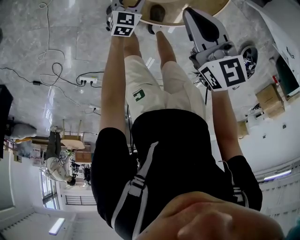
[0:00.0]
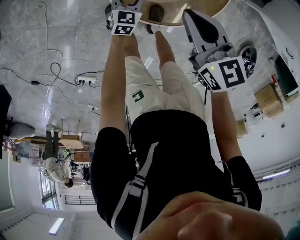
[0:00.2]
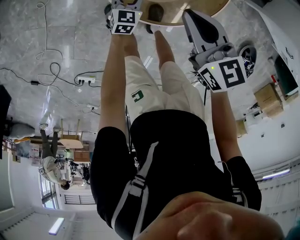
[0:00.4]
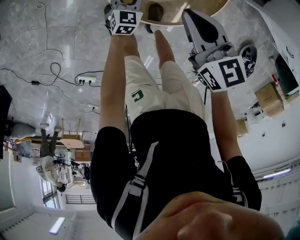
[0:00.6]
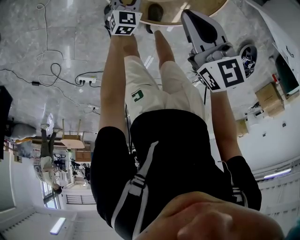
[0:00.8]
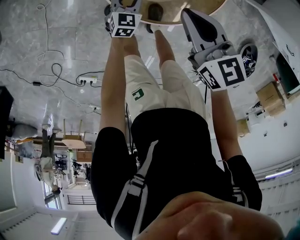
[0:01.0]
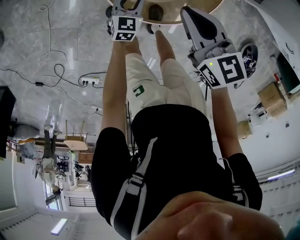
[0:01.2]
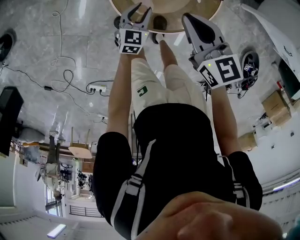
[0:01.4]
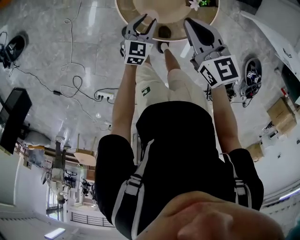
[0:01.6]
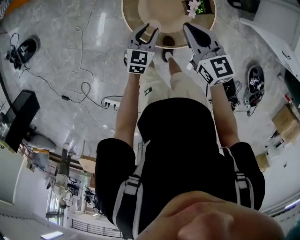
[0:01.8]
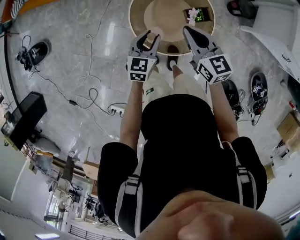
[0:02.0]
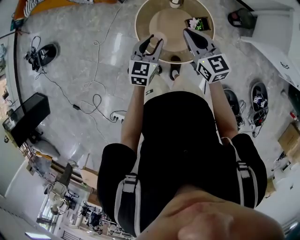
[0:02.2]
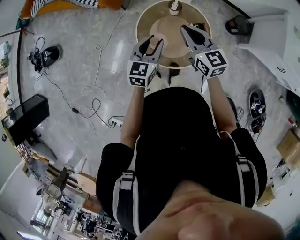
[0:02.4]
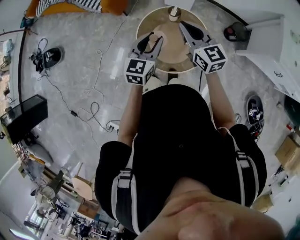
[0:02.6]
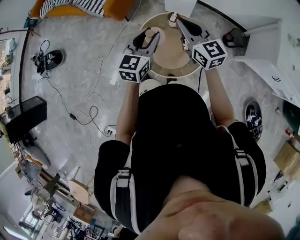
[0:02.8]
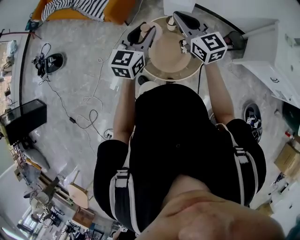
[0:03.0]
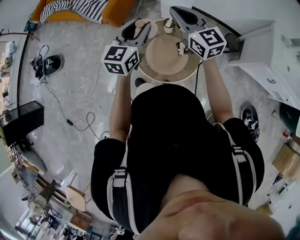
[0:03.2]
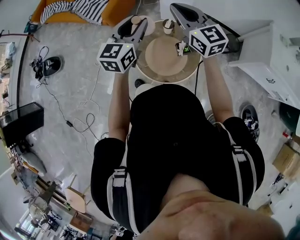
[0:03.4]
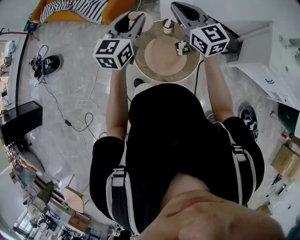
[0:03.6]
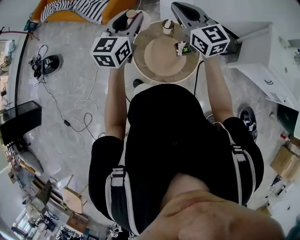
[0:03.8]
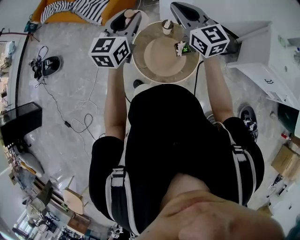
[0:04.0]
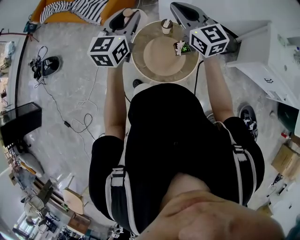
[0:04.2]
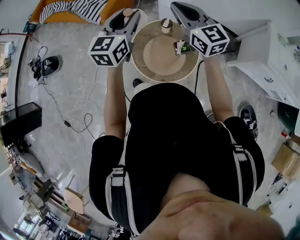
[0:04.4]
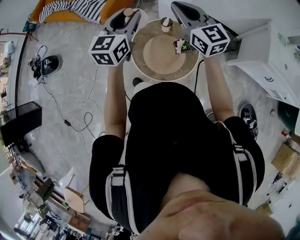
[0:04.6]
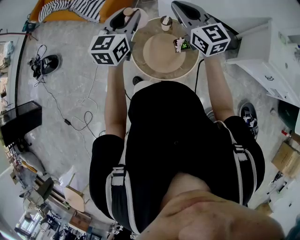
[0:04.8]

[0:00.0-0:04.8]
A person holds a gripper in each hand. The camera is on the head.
0:00.0 to 0:01.6: The right gripper is displaced upward by about 10 cm. Meanwhile the left gripper is displaced upward by roughly 20 cm.
0:01.6 to 0:03.2: Both grippers travel together upward, roughly 40 cm. The left gripper turns by roughly 20 degrees; the right gripper changes its angle by about 30 degrees.
0:03.2 to 0:04.8: The grippers make only small movements.

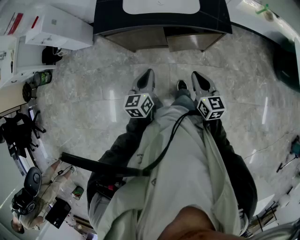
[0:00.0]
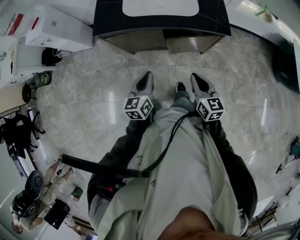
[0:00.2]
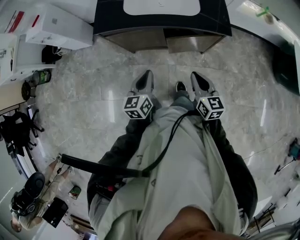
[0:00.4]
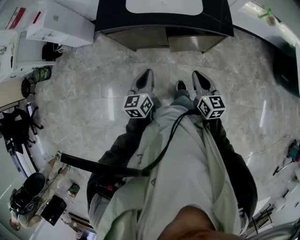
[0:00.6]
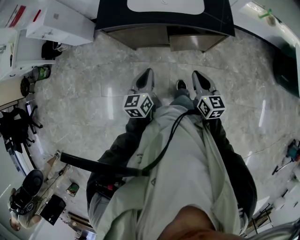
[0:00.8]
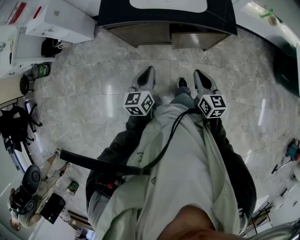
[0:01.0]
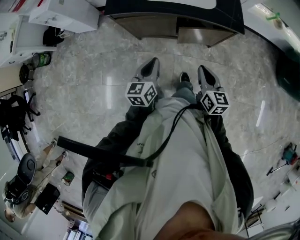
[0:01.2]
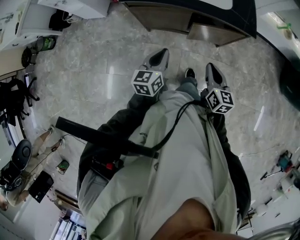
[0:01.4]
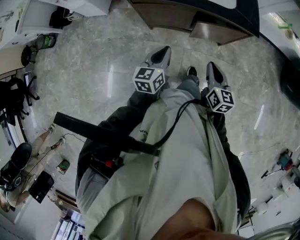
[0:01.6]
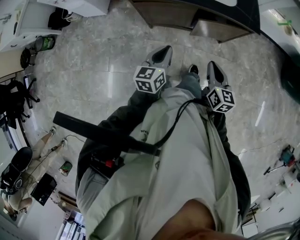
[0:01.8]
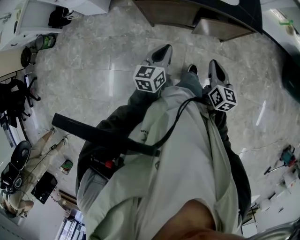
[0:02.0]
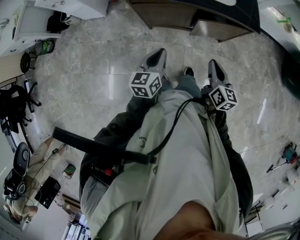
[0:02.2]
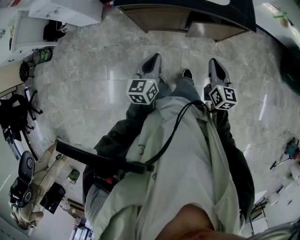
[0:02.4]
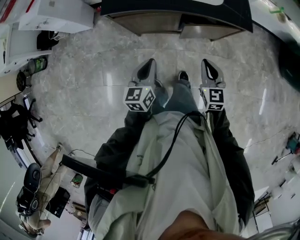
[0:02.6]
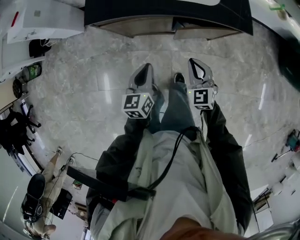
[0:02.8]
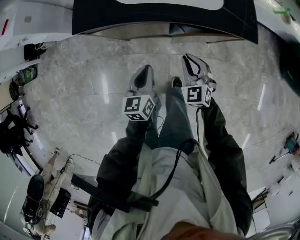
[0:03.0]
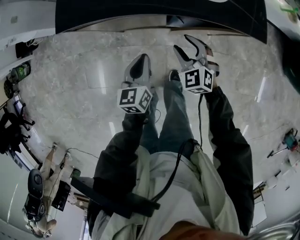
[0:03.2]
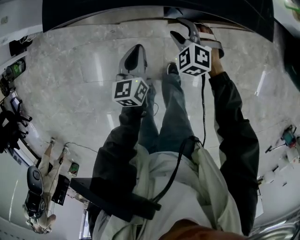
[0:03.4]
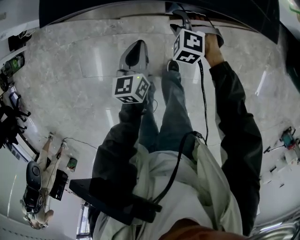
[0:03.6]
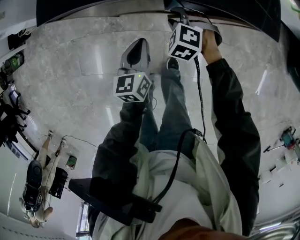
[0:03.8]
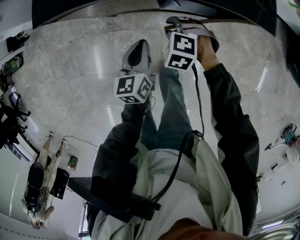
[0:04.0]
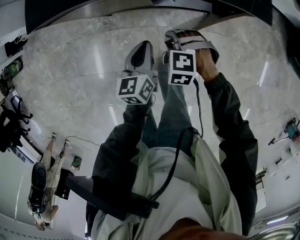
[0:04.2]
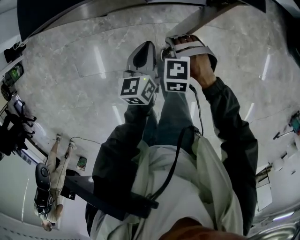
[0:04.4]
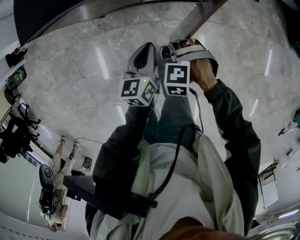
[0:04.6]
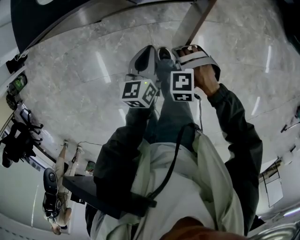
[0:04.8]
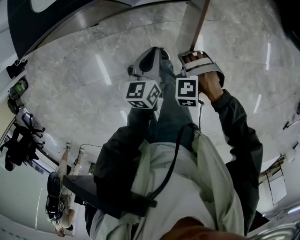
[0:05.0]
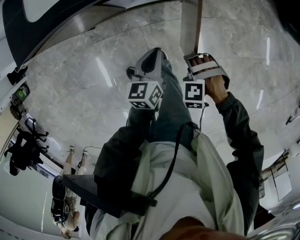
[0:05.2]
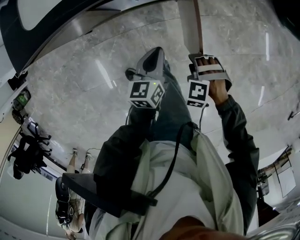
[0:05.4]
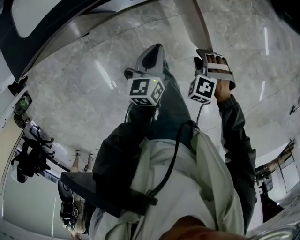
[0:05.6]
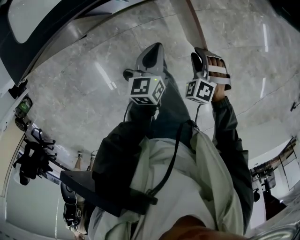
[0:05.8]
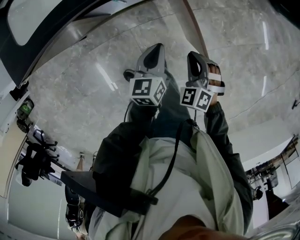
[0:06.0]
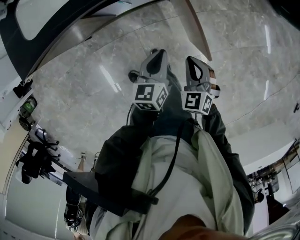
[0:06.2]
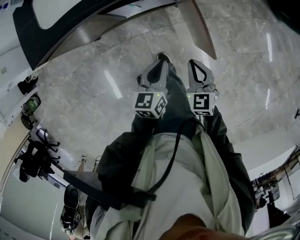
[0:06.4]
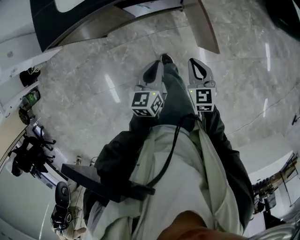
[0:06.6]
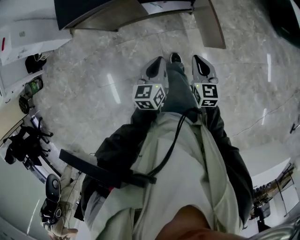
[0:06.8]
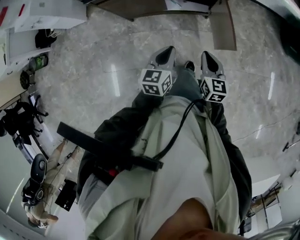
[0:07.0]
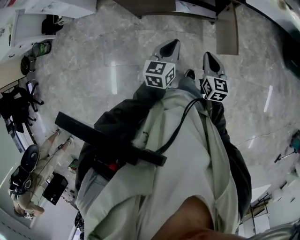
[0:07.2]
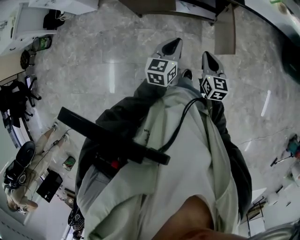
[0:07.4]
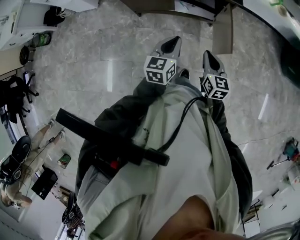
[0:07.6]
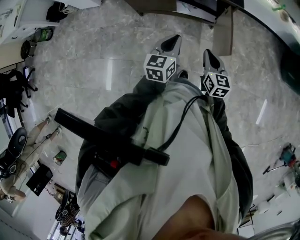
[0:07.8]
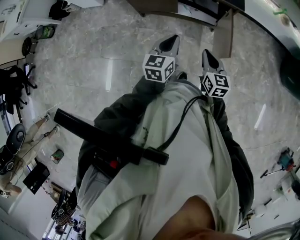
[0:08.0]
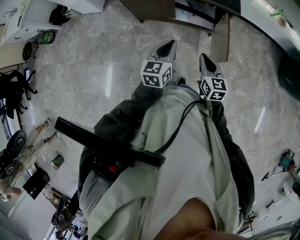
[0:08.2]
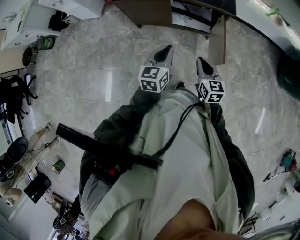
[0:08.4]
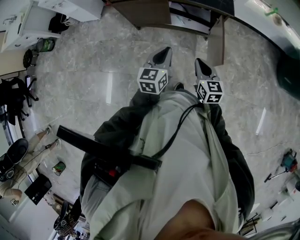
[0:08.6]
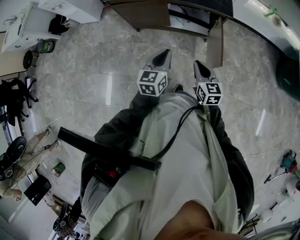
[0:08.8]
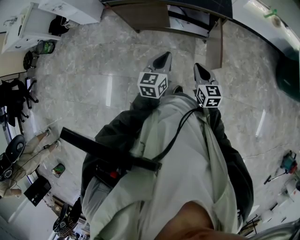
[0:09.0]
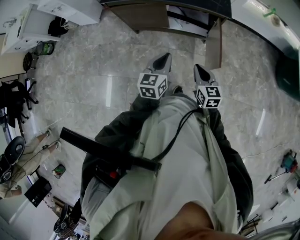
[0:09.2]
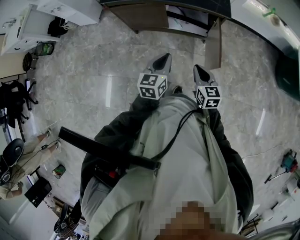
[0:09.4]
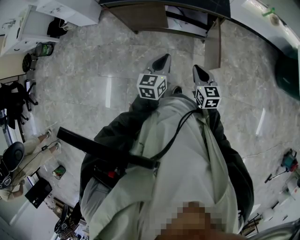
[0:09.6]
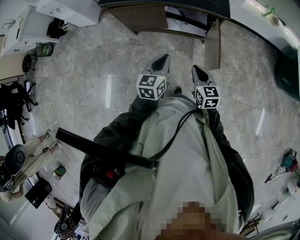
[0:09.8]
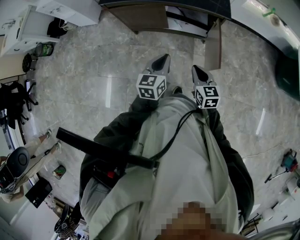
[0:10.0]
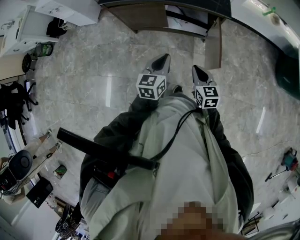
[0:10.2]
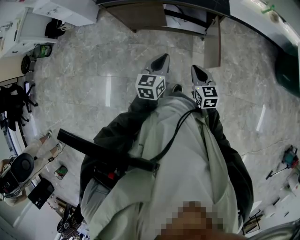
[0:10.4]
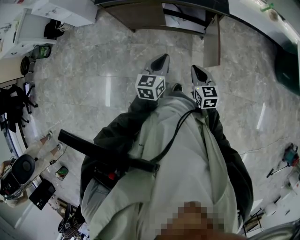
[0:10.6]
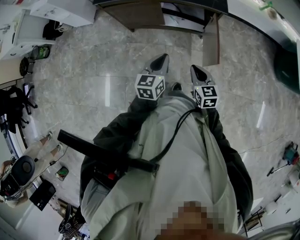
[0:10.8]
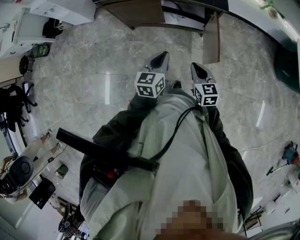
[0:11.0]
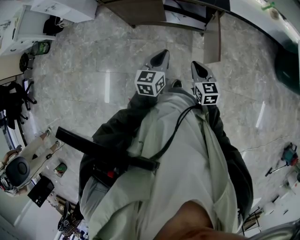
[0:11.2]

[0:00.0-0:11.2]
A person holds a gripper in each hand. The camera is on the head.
0:00.0 to 0:01.6: The grippers both shift to the left by approximately 5 cm.
0:01.6 to 0:03.2: The right gripper moves forward and downward, roughly 30 cm, rolls counterclockwise, seen from behind, by roughly 50 degrees, and opens; the left gripper travels downward and forward by about 20 cm.
0:03.2 to 0:04.8: The right gripper ends up roughly 25 cm from where it was, and tips its fingers downward by roughly 40 degrees, while the left gripper ends up approximately 20 cm from where it was.
0:04.8 to 0:06.4: The left gripper ends up about 10 cm from where it was, while the right gripper shifts by about 15 cm, rotates around the line of its fingers by some 70 degrees, clockwise from behind, and closes its fingers.
0:06.4 to 0:08.0: Both grippers travel together upward, to the left and backward, approximately 20 cm. The left gripper rotates some 20 degrees; the right gripper rotates approximately 30 degrees.
0:08.0 to 0:11.2: There are only small adjustments of the grippers.

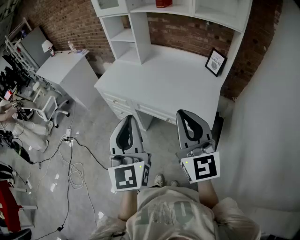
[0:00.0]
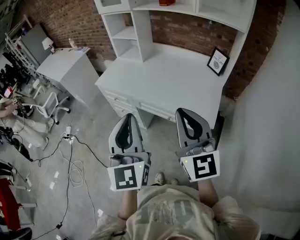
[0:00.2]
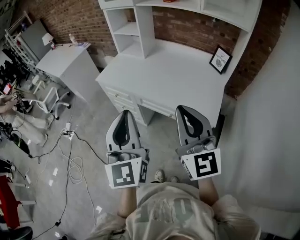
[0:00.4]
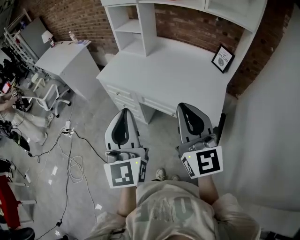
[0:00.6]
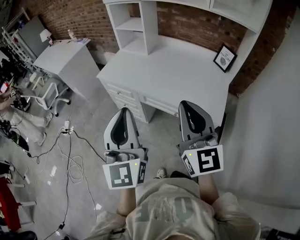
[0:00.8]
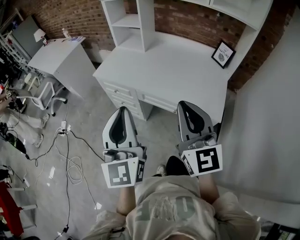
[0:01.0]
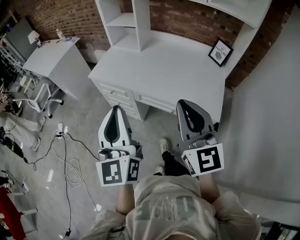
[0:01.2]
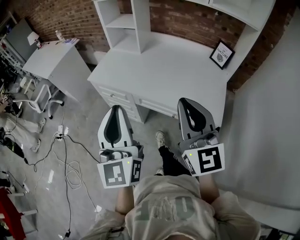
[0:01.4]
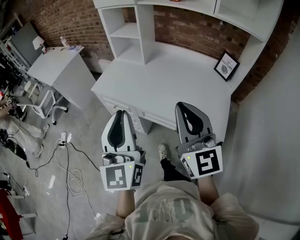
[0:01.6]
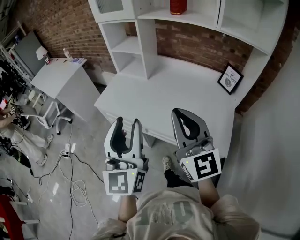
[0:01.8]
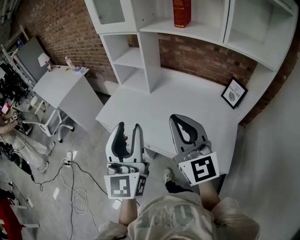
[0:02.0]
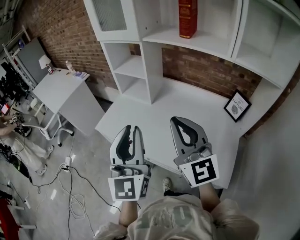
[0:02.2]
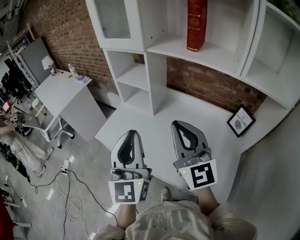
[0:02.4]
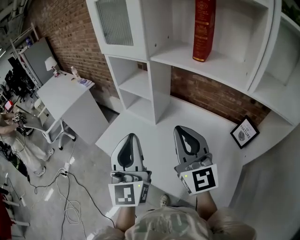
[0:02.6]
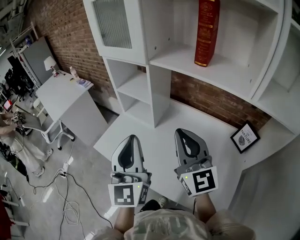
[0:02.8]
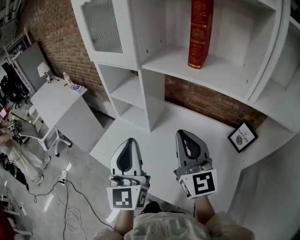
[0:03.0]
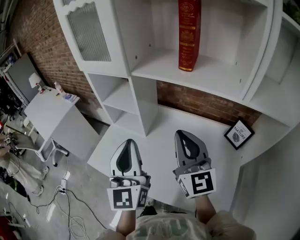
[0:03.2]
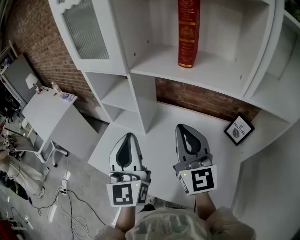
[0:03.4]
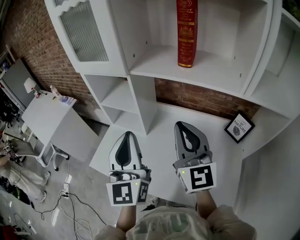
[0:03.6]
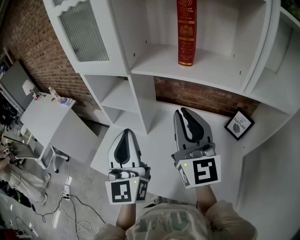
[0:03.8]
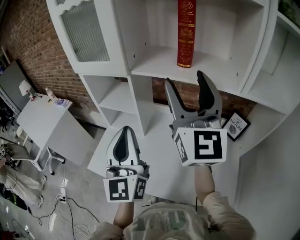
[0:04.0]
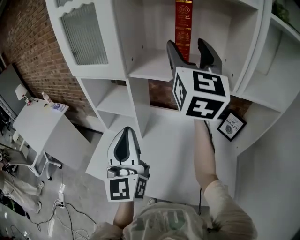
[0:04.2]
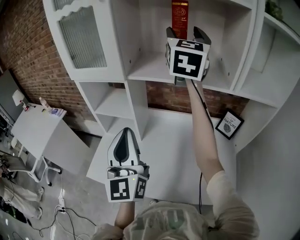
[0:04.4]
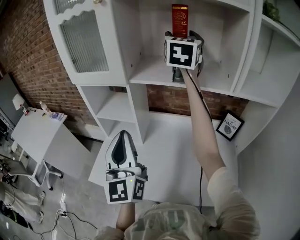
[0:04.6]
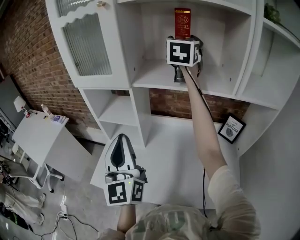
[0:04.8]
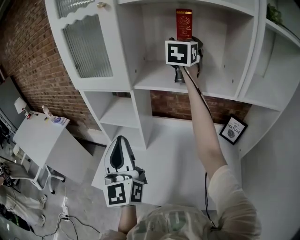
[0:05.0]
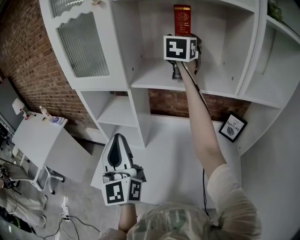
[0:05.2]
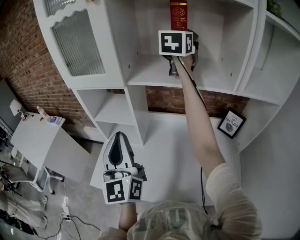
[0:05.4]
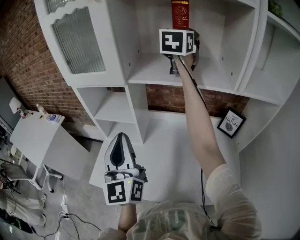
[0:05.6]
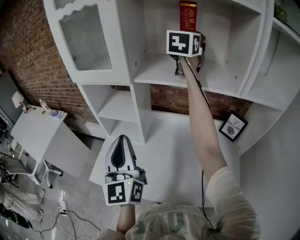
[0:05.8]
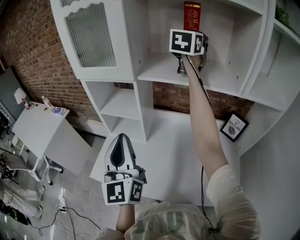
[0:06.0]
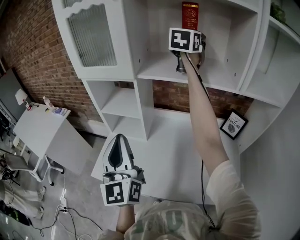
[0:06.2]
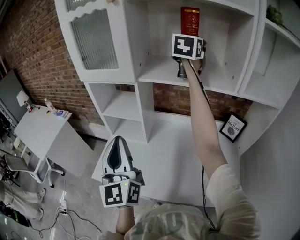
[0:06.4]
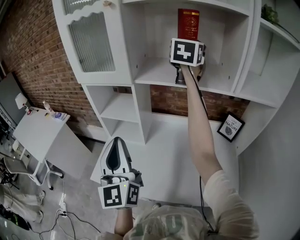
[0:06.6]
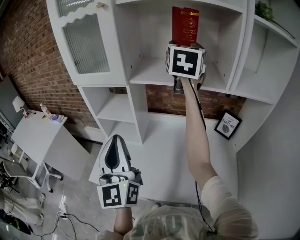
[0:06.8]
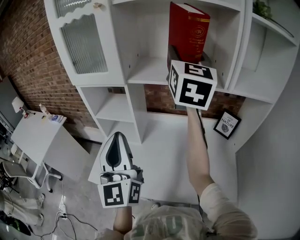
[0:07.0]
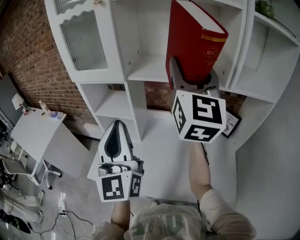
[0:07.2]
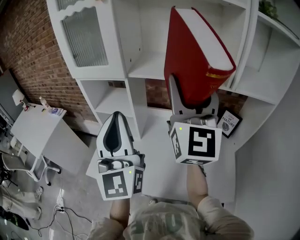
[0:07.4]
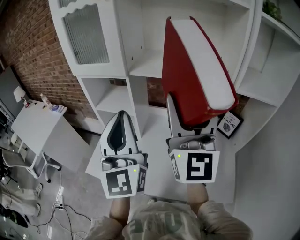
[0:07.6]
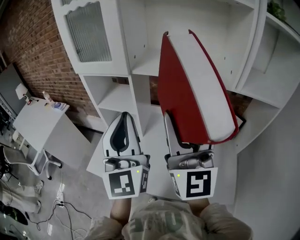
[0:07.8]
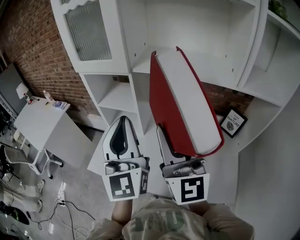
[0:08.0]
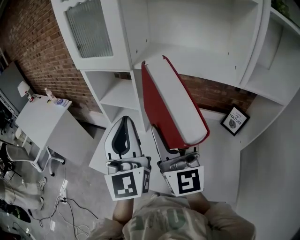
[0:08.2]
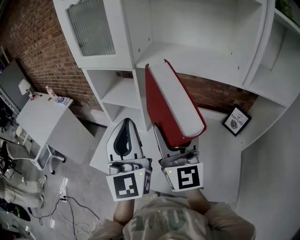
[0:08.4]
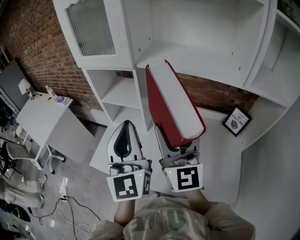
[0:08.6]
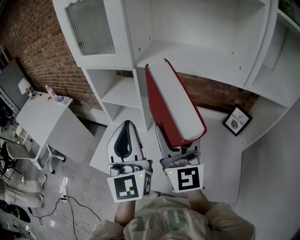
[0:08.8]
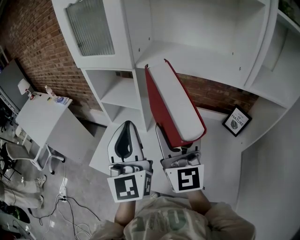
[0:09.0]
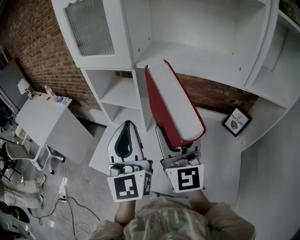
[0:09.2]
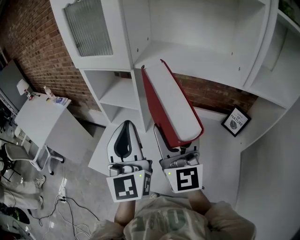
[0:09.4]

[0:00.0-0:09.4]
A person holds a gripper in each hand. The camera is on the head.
0:00.0 to 0:01.6: The two grippers go about 15 cm forward and to the left.
0:01.6 to 0:03.2: Both grippers travel together forward, some 35 cm. The left gripper opens and closes again.
0:03.2 to 0:04.8: The right gripper shifts roughly 35 cm forward and upward, swivels approximately 40 degrees, and opens its fingers; the left gripper travels to the left by approximately 5 cm.
0:04.8 to 0:06.2: There are only small adjustments of the grippers.
0:06.2 to 0:07.8: The left gripper is displaced upward and to the right by some 10 cm. The right gripper heads backward, covering approximately 35 cm, and rotates approximately 40 degrees.
0:07.8 to 0:09.4: The left gripper ends up roughly 5 cm from where it was. Meanwhile the right gripper is displaced downward by about 10 cm.
